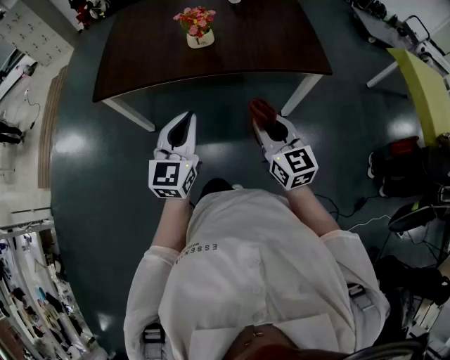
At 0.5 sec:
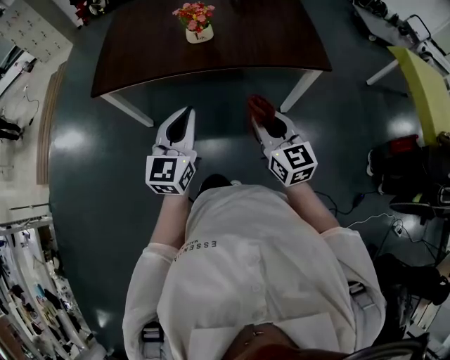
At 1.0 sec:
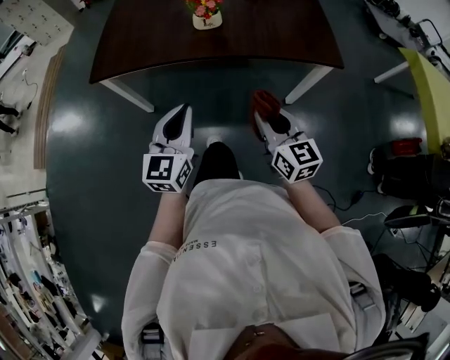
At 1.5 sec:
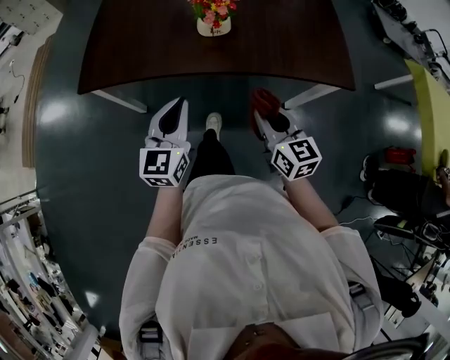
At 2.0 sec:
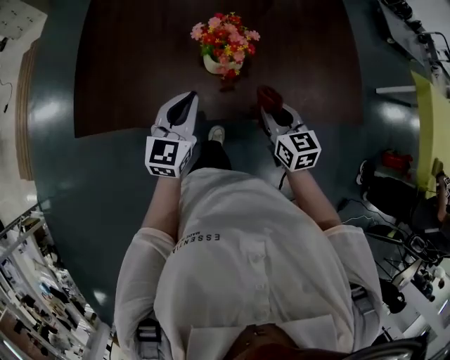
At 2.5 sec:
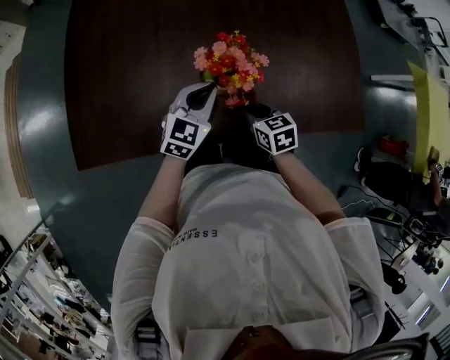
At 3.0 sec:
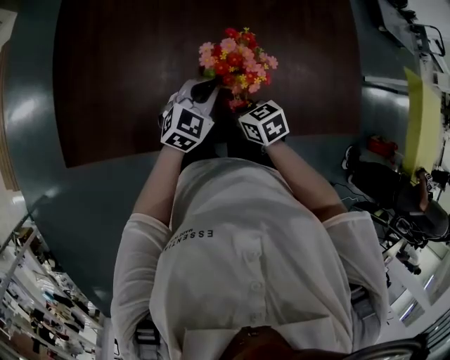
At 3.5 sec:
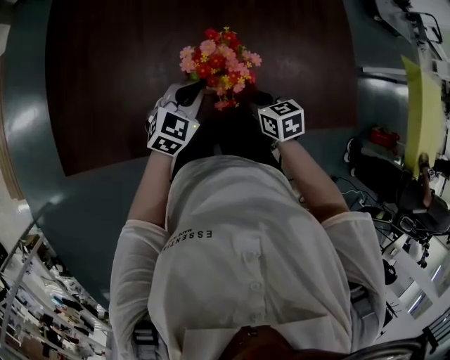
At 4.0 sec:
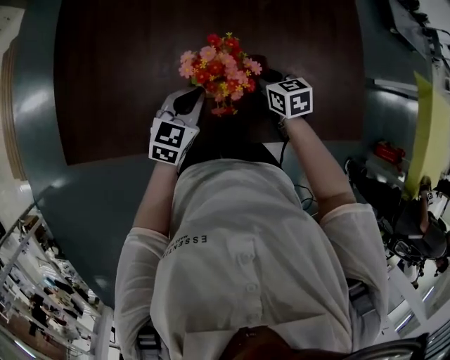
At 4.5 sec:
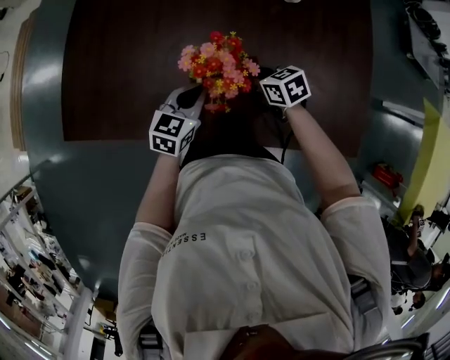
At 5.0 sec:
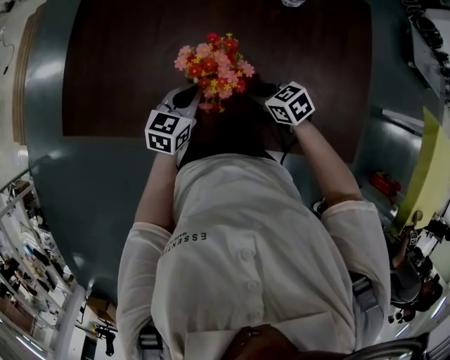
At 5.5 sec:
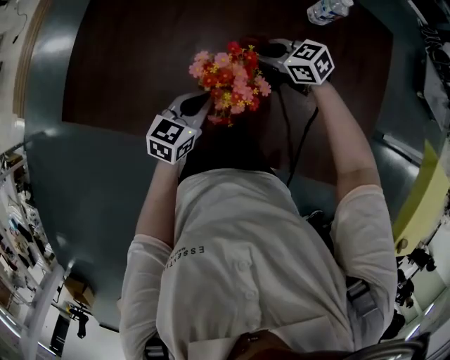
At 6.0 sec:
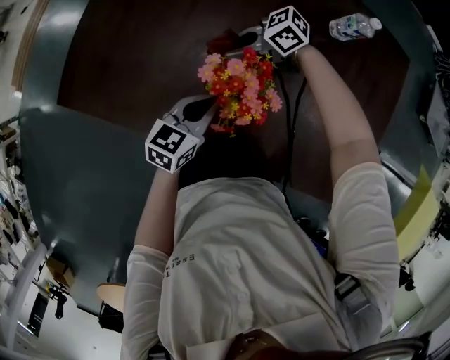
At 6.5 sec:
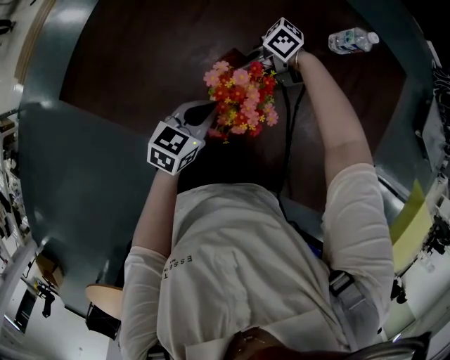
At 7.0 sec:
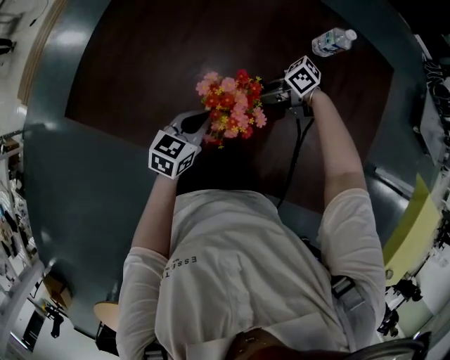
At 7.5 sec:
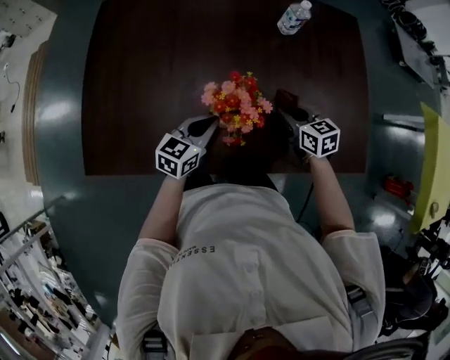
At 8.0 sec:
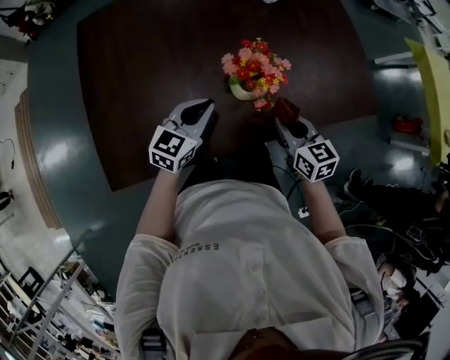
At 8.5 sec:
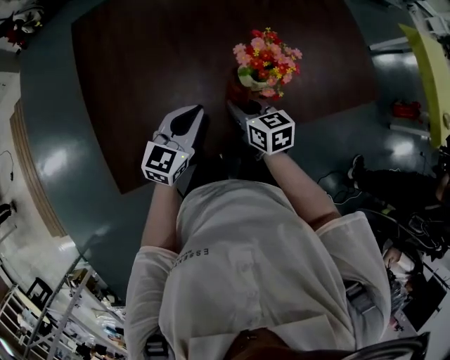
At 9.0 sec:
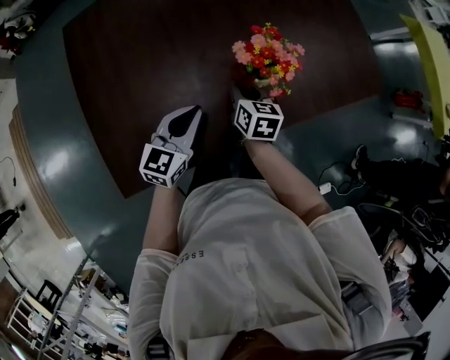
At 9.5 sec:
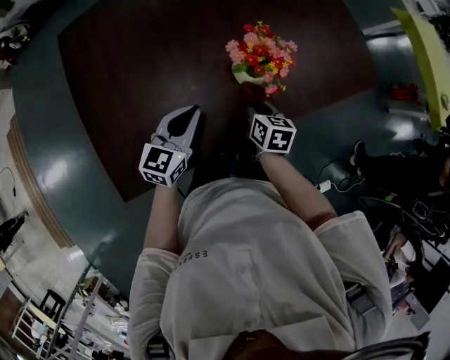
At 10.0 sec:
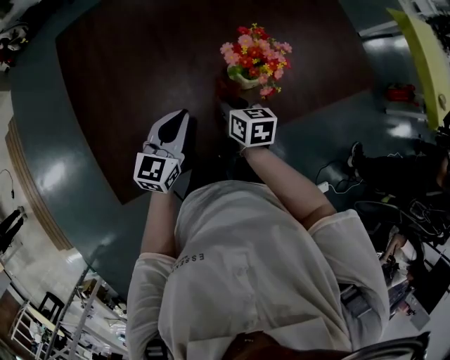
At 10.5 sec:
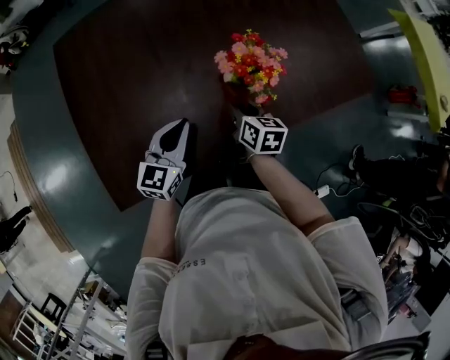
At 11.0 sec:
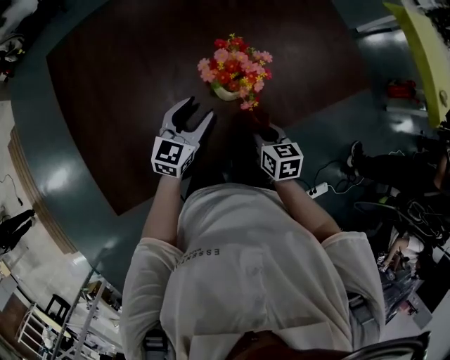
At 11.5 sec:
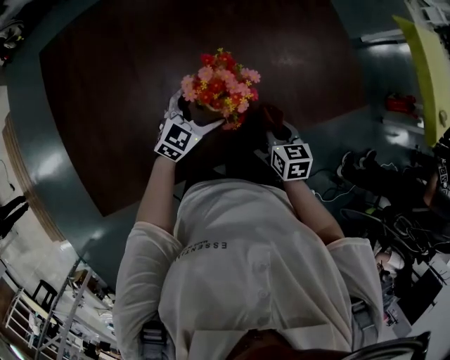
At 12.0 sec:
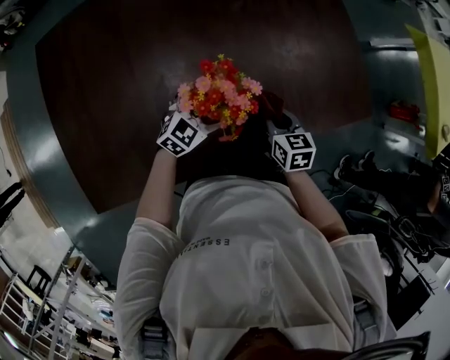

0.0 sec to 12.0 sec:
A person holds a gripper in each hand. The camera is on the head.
0.0 sec to 2.0 sec: The grippers both shift forward by roughly 35 cm. The right gripper swivels about 20 degrees.
2.0 sec to 4.0 sec: The two grippers go about 20 cm forward and downward.
4.0 sec to 6.0 sec: The right gripper shifts by about 20 cm, and changes its angle by about 80 degrees. The left gripper changes its angle by roughly 20 degrees.
6.0 sec to 8.0 sec: The right gripper moves some 25 cm, and changes its angle by about 100 degrees. Meanwhile the left gripper moves roughly 10 cm, and changes its angle by some 40 degrees.
8.0 sec to 10.0 sec: The left gripper travels to the left by about 5 cm, while the right gripper moves left and right over some 15 cm, changing direction 2 times, and swivels approximately 20 degrees.
10.0 sec to 12.0 sec: The right gripper moves to the right, approximately 20 cm. Meanwhile the left gripper heads to the right, forward and downward, covering roughly 25 cm, rotates about 30 degrees, and opens.

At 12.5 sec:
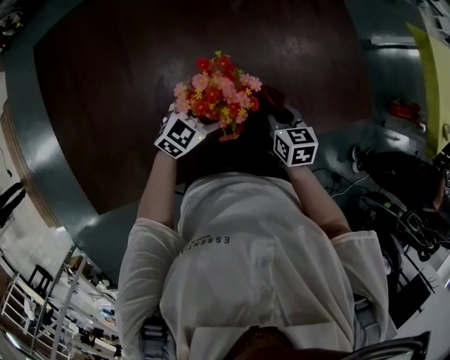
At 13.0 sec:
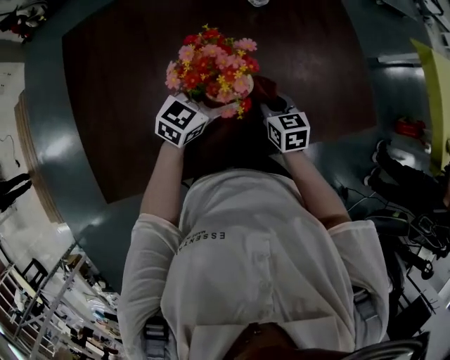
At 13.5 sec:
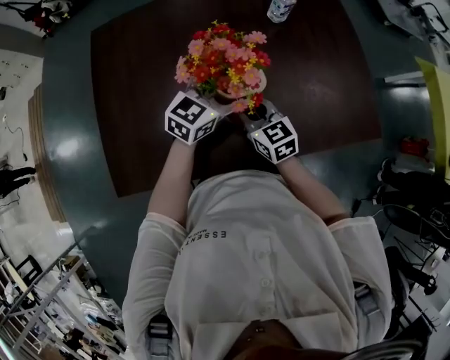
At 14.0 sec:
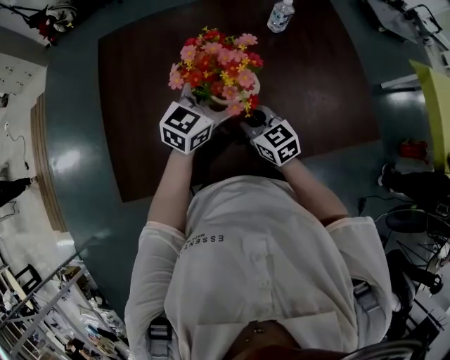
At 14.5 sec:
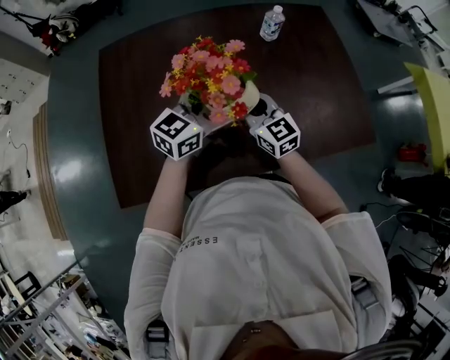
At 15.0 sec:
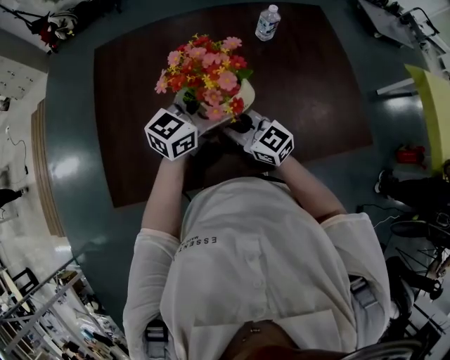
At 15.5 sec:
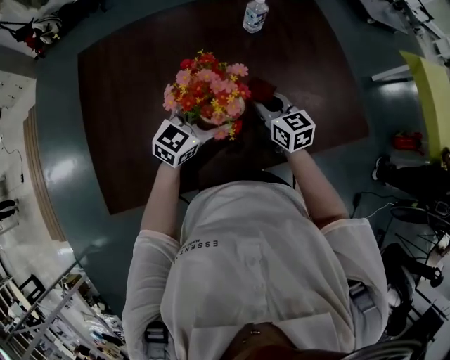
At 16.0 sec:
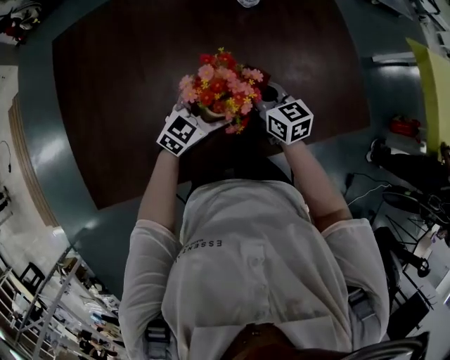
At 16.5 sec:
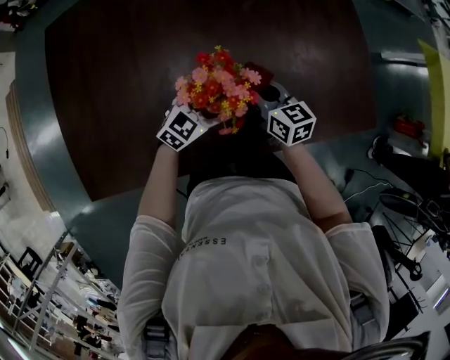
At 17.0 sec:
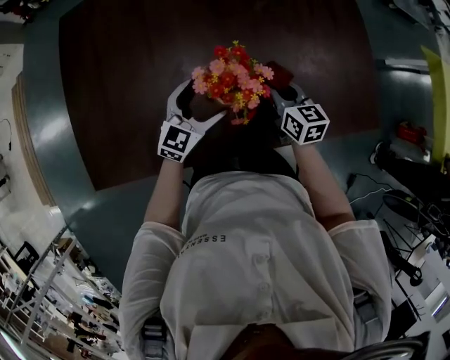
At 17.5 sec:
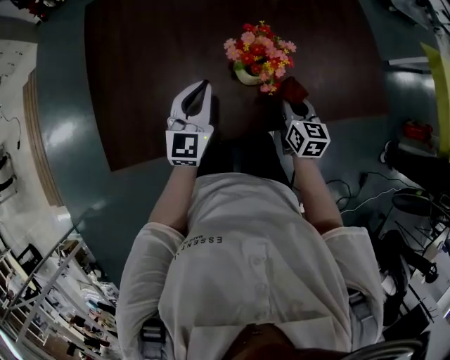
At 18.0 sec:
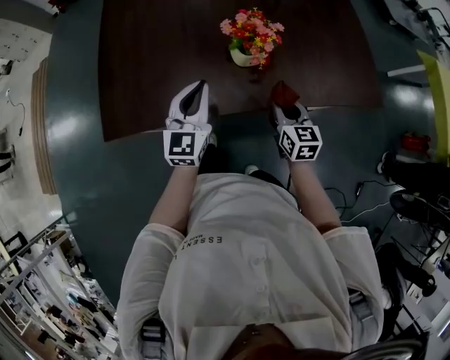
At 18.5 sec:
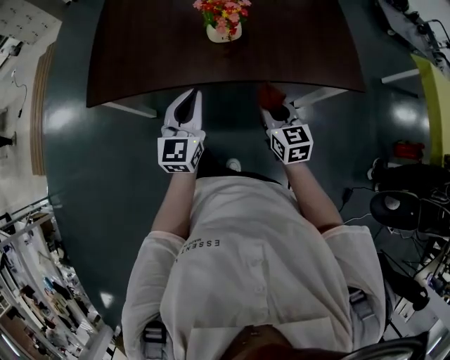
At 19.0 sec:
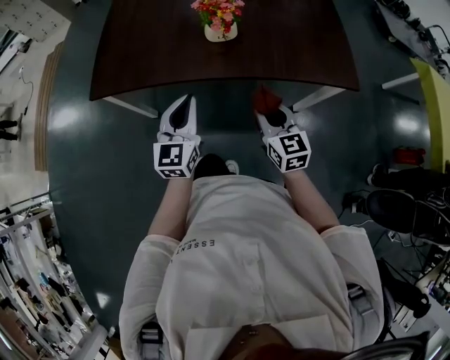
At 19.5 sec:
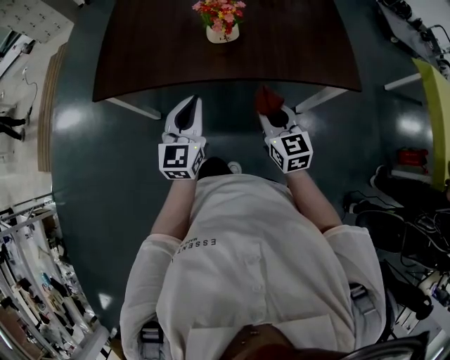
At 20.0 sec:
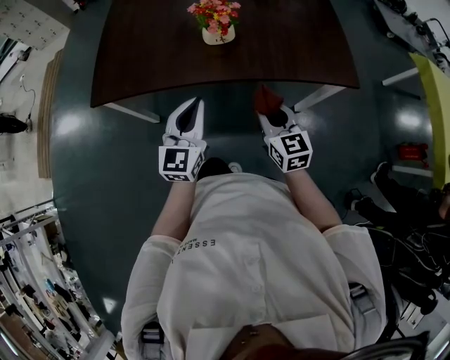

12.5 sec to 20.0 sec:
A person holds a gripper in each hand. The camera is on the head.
12.5 sec to 14.5 sec: The right gripper shifts about 25 cm to the left and upward, and tilts its fingers about 30 degrees upward. Meanwhile the left gripper goes roughly 20 cm upward, and turns by some 30 degrees.
14.5 sec to 16.5 sec: The left gripper is displaced downward by some 20 cm, and swivels roughly 20 degrees, while the right gripper moves to the right and downward, about 20 cm, and turns by approximately 30 degrees.
16.5 sec to 18.0 sec: The right gripper moves backward, some 20 cm. The left gripper moves backward, upward and to the left, about 25 cm, rotates some 50 degrees, and closes.
18.0 sec to 20.0 sec: The left gripper moves backward and to the right, roughly 20 cm, while the right gripper shifts some 15 cm backward.

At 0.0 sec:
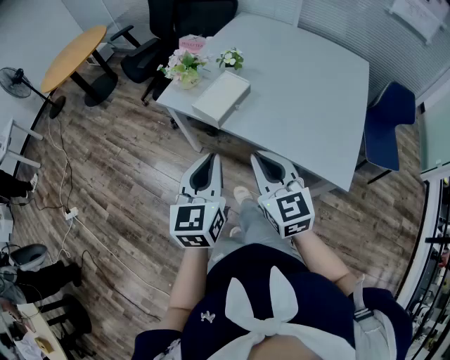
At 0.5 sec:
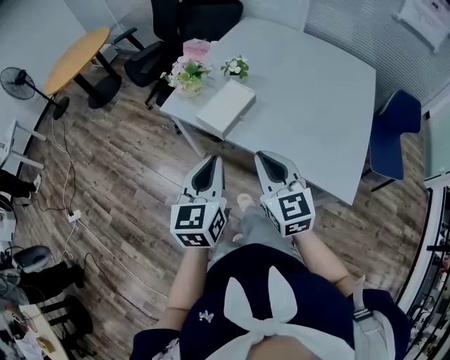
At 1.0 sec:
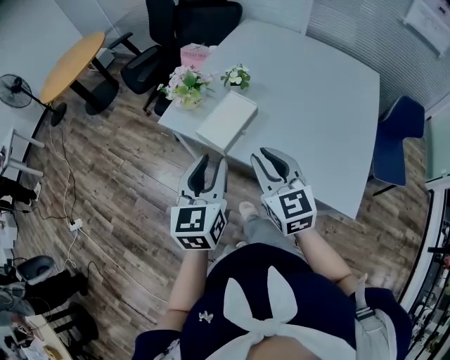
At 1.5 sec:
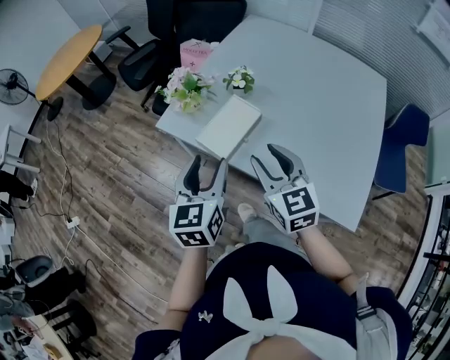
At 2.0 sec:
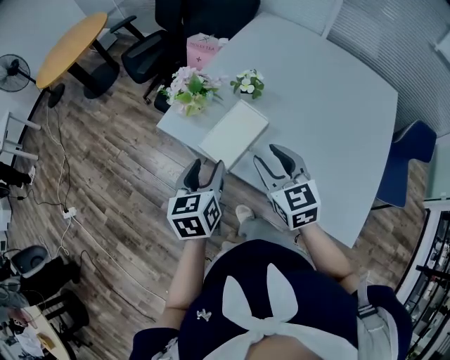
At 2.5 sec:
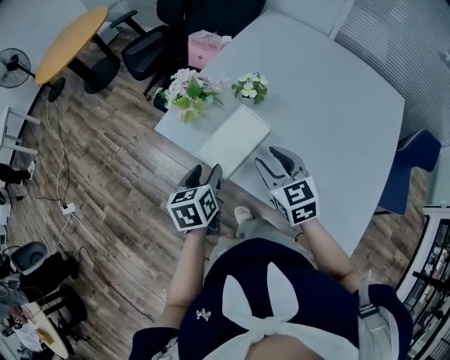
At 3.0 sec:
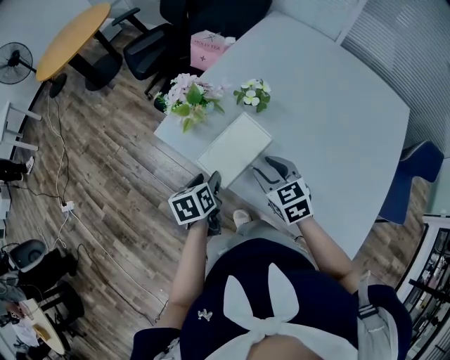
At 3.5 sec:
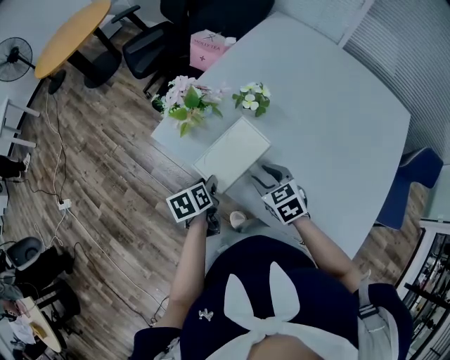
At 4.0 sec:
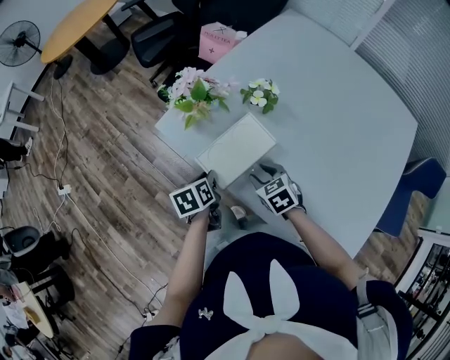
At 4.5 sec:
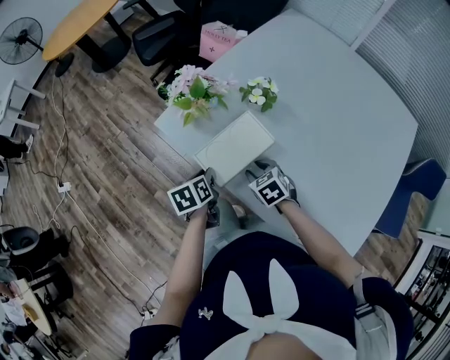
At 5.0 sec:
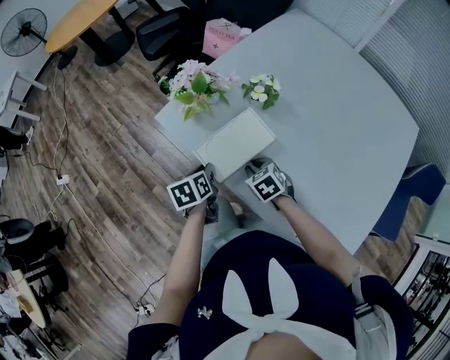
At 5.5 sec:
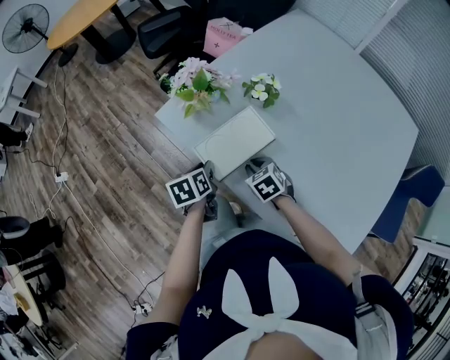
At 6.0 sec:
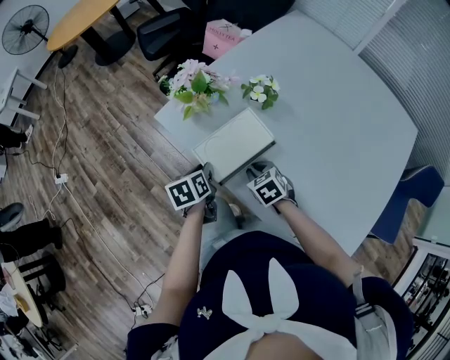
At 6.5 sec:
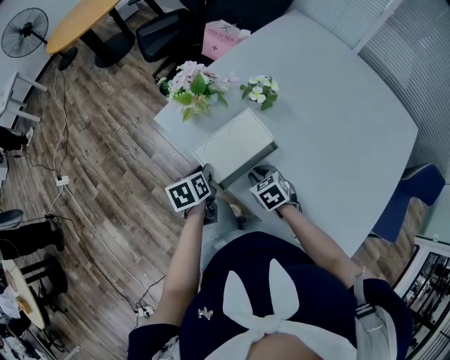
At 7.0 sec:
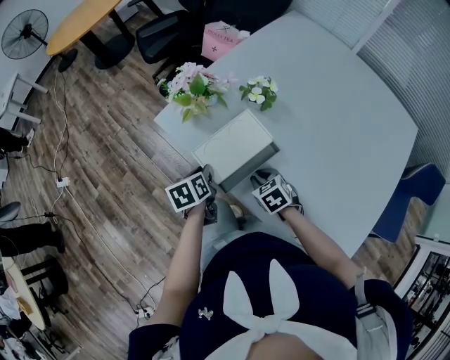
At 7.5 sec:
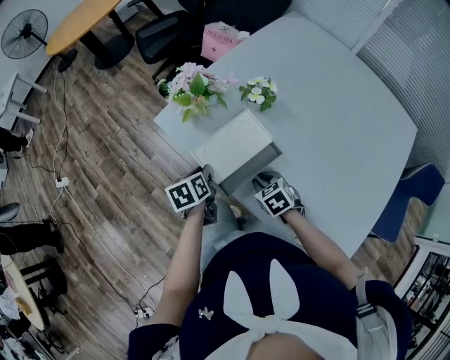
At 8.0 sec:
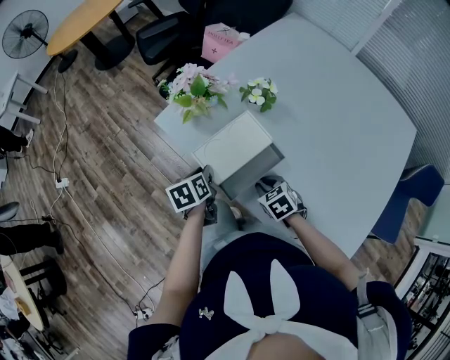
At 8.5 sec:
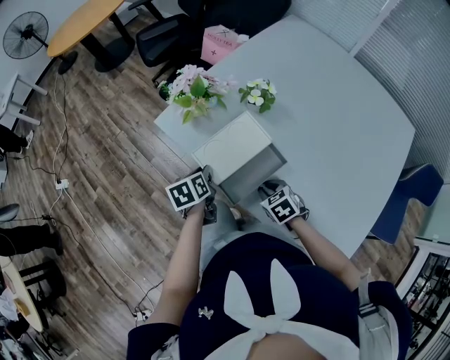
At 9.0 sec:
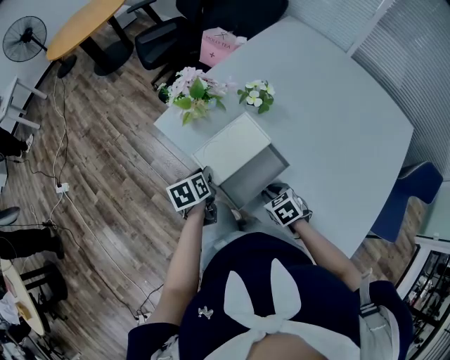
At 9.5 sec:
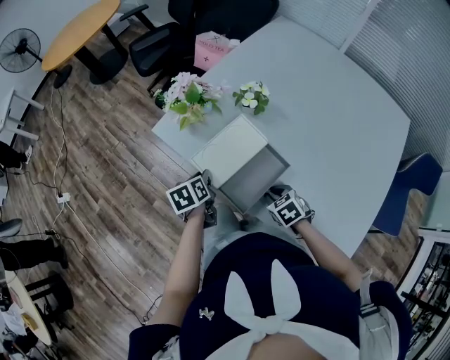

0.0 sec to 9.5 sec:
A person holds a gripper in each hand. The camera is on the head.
0.0 sec to 2.0 sec: The grippers both shift forward by some 25 cm. The right gripper opens its fingers, while the left gripper swivels roughly 20 degrees, and opens up.
2.0 sec to 4.0 sec: Both grippers travel together downward, about 20 cm. The left gripper rotates roughly 30 degrees, and closes. Meanwhile the right gripper tilts its fingers roughly 30 degrees downward.
4.0 sec to 5.5 sec: The right gripper closes up.
5.5 sec to 7.5 sec: The grippers stay close to where they were, moving slightly.
7.5 sec to 9.5 sec: The right gripper heads backward, covering roughly 5 cm.
